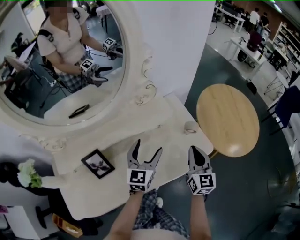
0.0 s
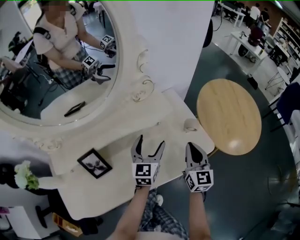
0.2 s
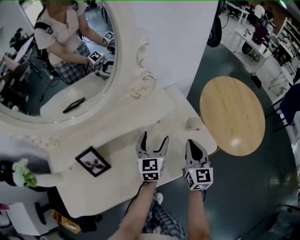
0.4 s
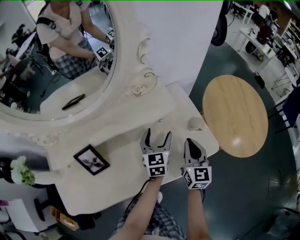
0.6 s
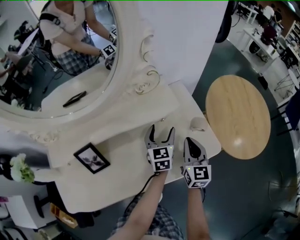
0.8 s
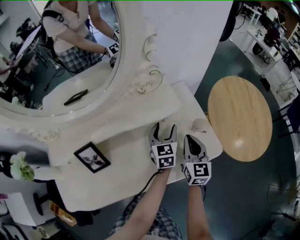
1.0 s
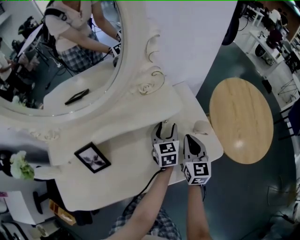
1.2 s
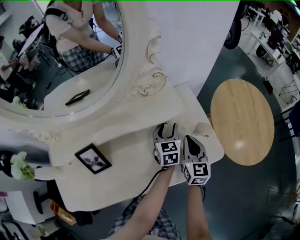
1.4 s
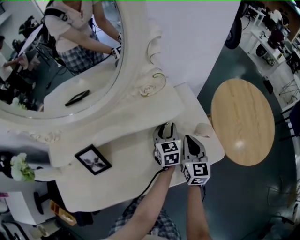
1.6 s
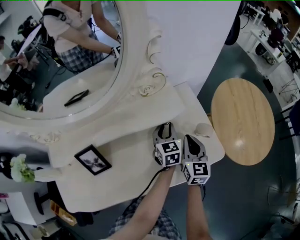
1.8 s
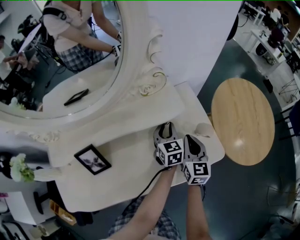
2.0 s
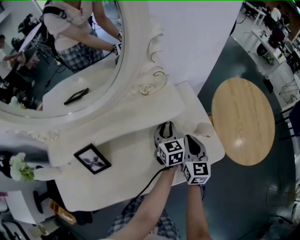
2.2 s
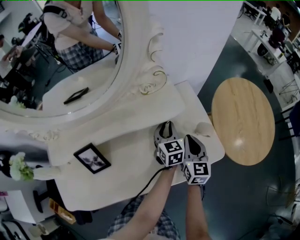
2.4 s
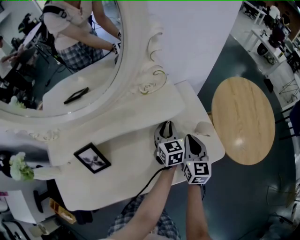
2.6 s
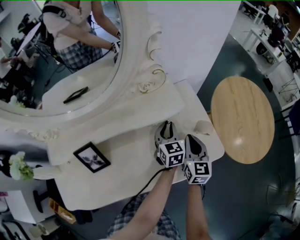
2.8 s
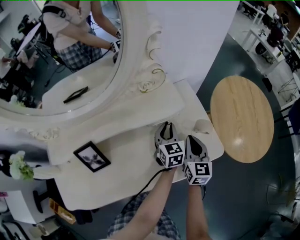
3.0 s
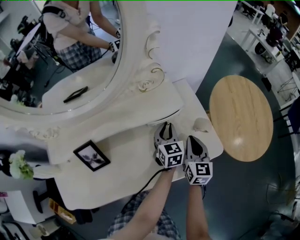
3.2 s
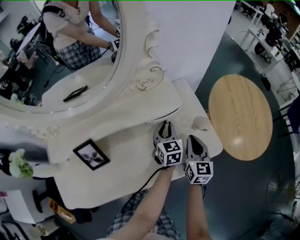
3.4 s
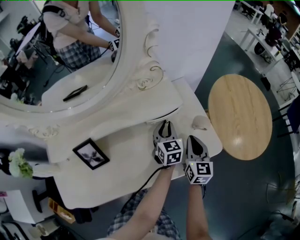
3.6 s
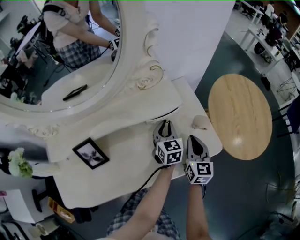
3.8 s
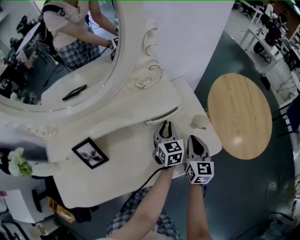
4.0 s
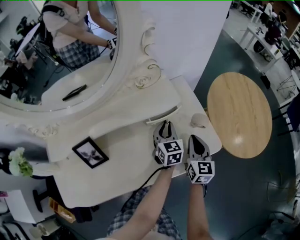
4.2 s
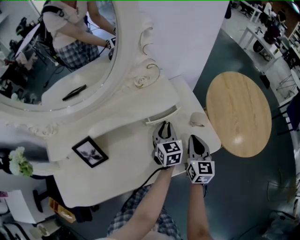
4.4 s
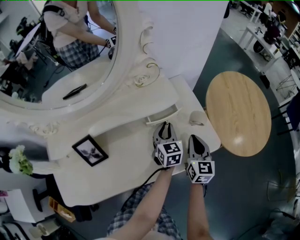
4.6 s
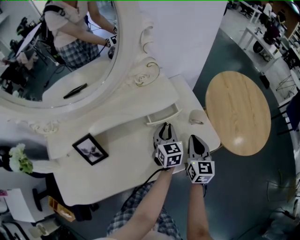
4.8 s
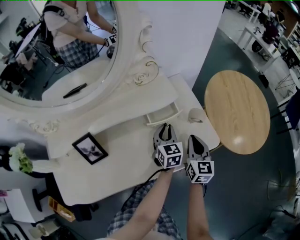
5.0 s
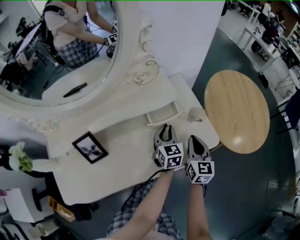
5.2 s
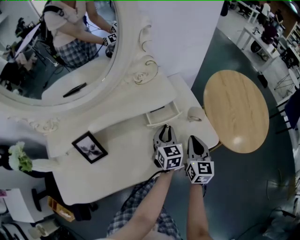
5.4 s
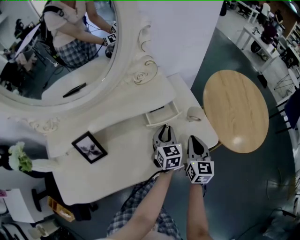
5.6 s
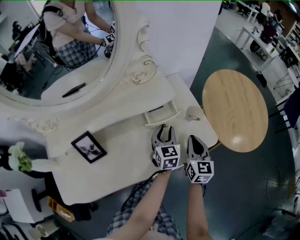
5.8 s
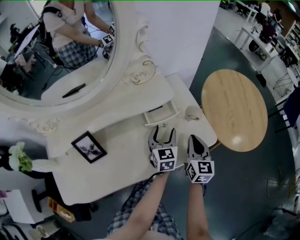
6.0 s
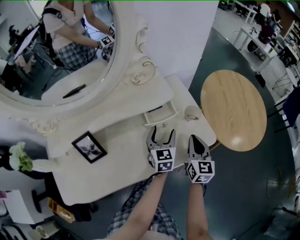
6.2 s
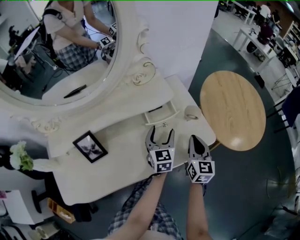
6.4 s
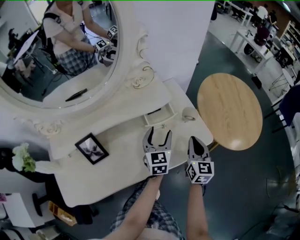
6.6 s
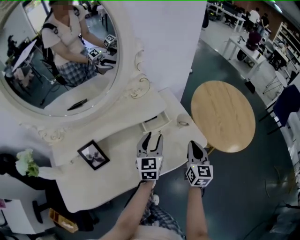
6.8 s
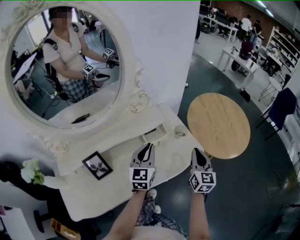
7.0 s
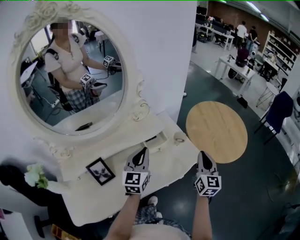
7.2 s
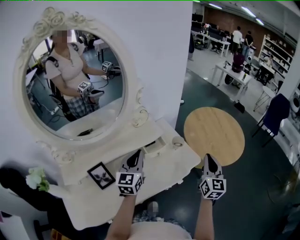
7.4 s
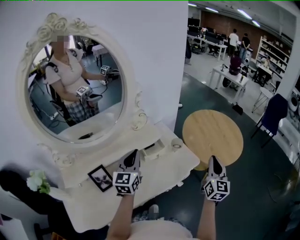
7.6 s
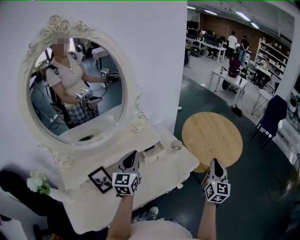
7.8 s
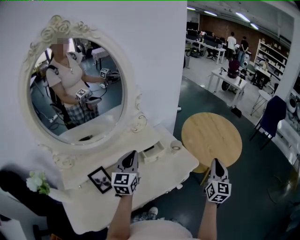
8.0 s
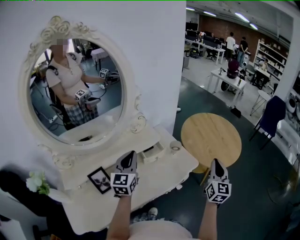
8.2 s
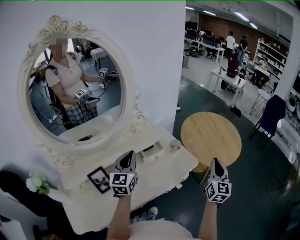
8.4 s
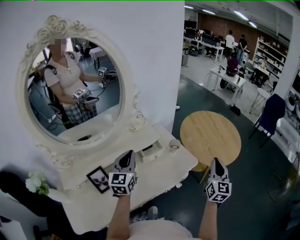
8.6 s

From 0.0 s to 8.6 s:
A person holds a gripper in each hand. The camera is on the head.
From 0.0 s to 1.4 s: The left gripper heads forward, downward and to the right, covering roughly 20 cm, changes its angle by some 20 degrees, and closes up. The right gripper heads downward and forward, covering some 15 cm.
From 1.4 s to 2.8 s: The grippers stay close to where they were, moving slightly.
From 2.8 s to 4.4 s: The right gripper moves about 5 cm.
From 4.4 s to 5.8 s: The grippers move only a little.
From 5.8 s to 7.2 s: The left gripper heads upward and to the left, covering some 25 cm, turns by about 30 degrees, and opens, then closes once more; the right gripper shifts about 15 cm upward.
From 7.2 s to 8.6 s: The right gripper moves to the right, roughly 10 cm. Meanwhile the left gripper changes place by roughly 5 cm.

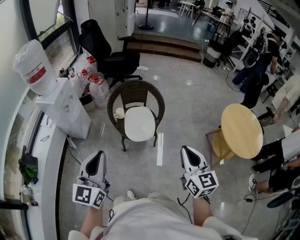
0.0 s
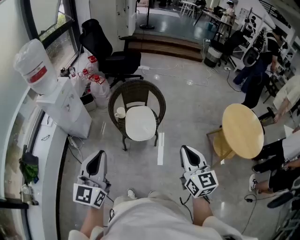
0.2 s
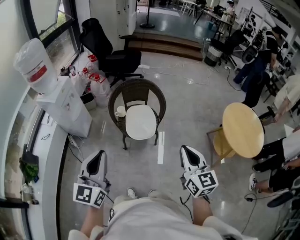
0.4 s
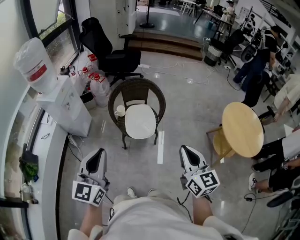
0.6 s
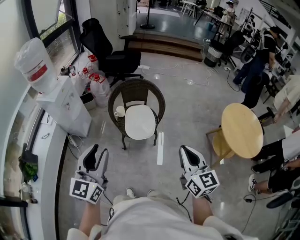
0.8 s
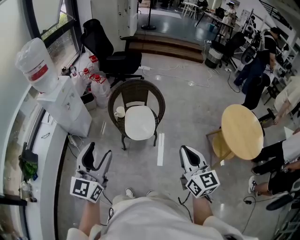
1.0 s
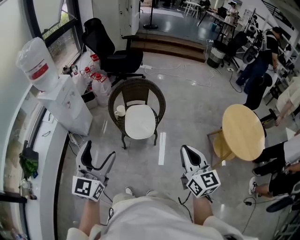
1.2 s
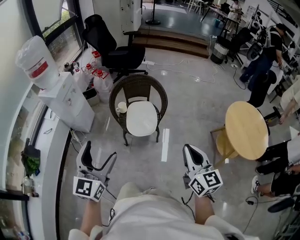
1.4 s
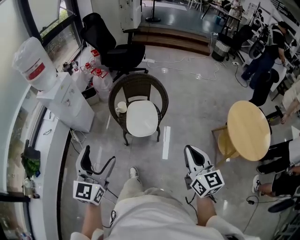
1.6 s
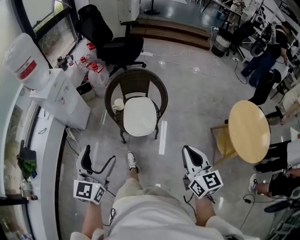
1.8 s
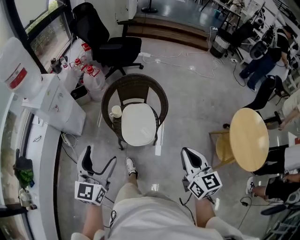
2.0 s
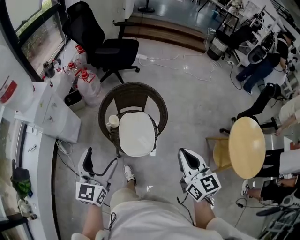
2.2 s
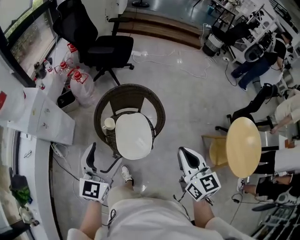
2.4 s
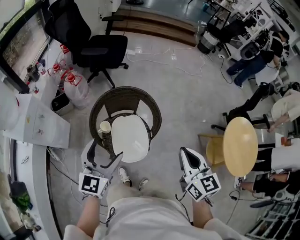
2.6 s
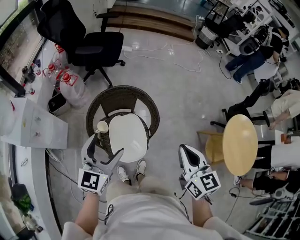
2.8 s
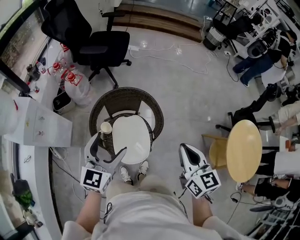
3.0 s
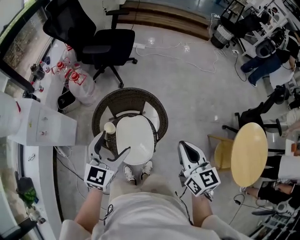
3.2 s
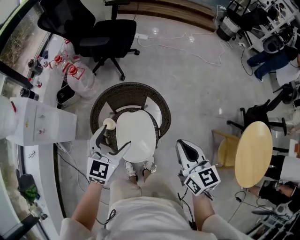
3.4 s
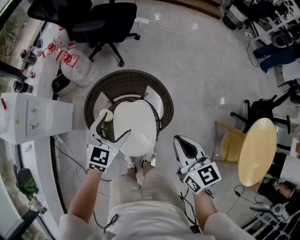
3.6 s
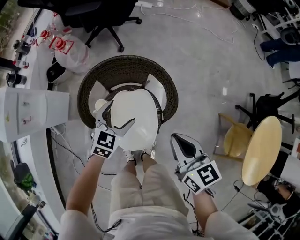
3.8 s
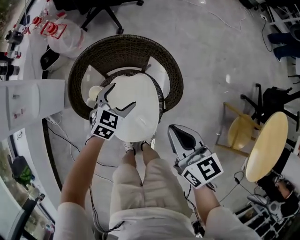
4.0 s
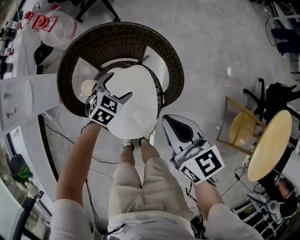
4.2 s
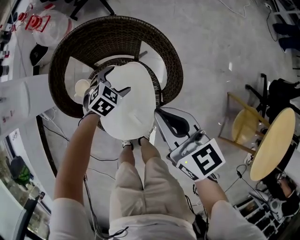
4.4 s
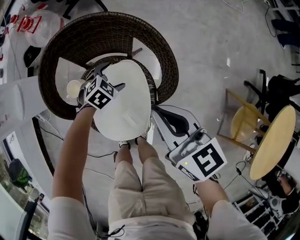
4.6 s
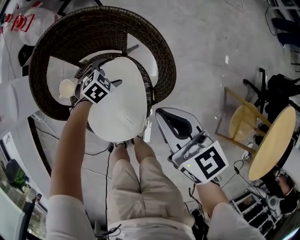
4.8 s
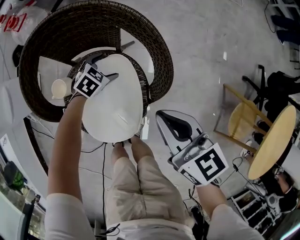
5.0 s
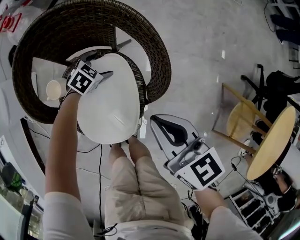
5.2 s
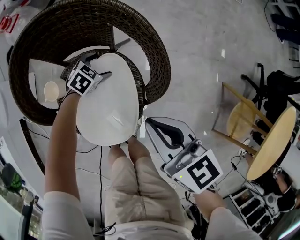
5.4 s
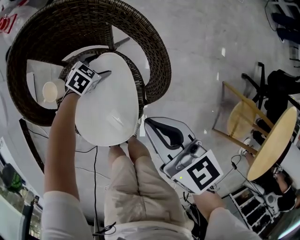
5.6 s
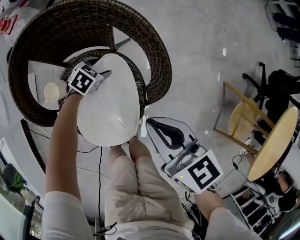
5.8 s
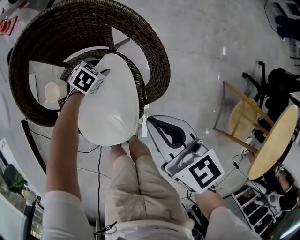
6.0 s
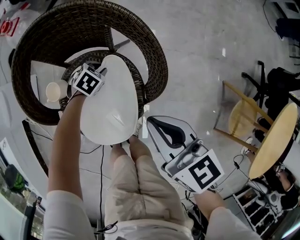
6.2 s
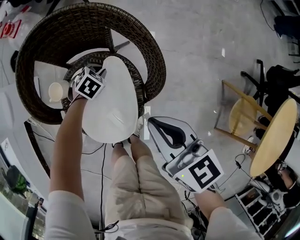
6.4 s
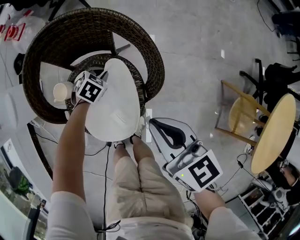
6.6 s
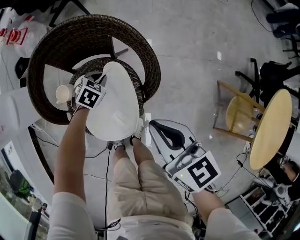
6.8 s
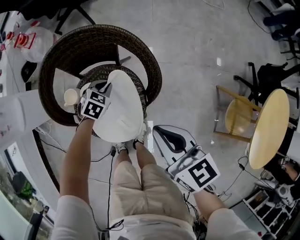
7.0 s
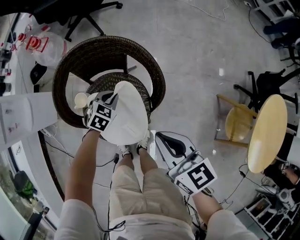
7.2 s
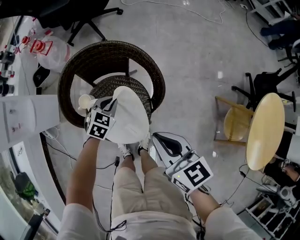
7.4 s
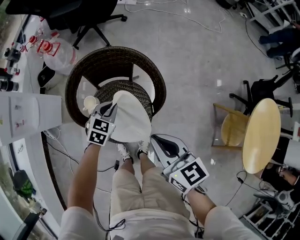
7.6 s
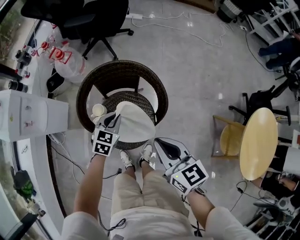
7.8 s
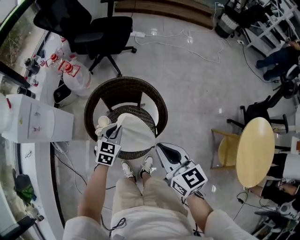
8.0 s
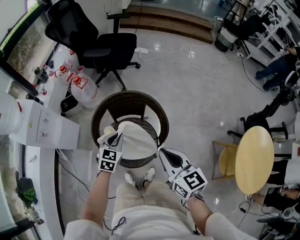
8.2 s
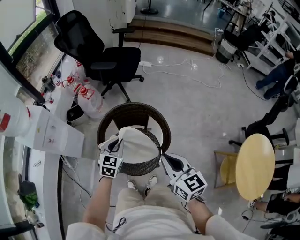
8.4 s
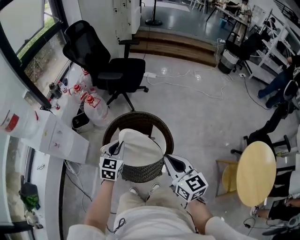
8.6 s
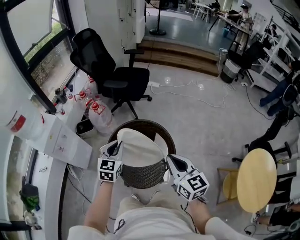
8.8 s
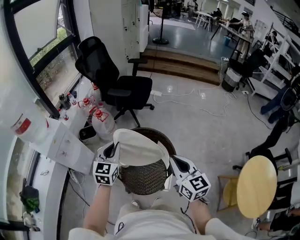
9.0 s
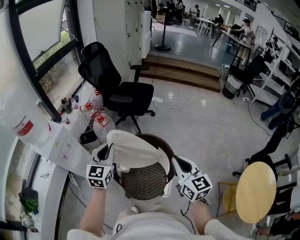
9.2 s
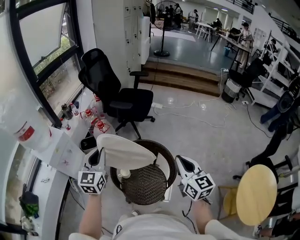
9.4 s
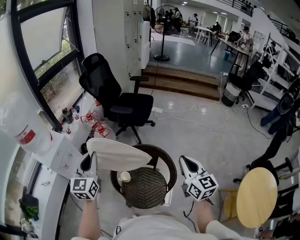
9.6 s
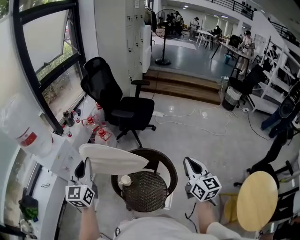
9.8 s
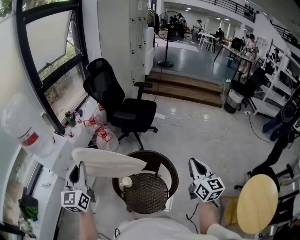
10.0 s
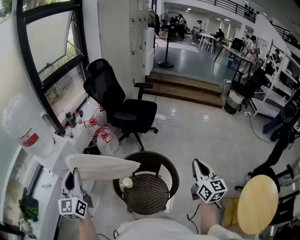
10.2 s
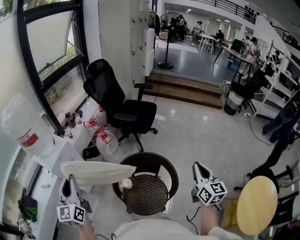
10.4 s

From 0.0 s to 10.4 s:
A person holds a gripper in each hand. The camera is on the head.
From 0.0 s to 1.4 s: The left gripper opens.
From 1.4 s to 3.0 s: Both grippers are carried forward, roughly 40 cm.
From 3.0 s to 4.4 s: The left gripper moves downward, some 50 cm, and angles its fingers downward, by some 50 degrees. Meanwhile the right gripper goes approximately 30 cm downward and forward, and turns by about 30 degrees.
From 4.4 s to 6.0 s: The right gripper goes some 10 cm downward and to the right. Meanwhile the left gripper heads downward, covering roughly 15 cm, and closes its fingers.
From 6.0 s to 7.4 s: The left gripper shifts roughly 25 cm upward, rotates approximately 20 degrees, and closes up. Meanwhile the right gripper heads upward and backward, covering some 15 cm.
From 7.4 s to 9.0 s: The left gripper is displaced upward by approximately 40 cm, and tips its fingers upward by approximately 40 degrees; the right gripper goes about 25 cm upward, and changes its angle by about 20 degrees.
From 9.0 s to 10.4 s: The right gripper goes about 10 cm to the right. The left gripper is displaced to the left, upward and backward by about 25 cm, and swivels about 40 degrees.

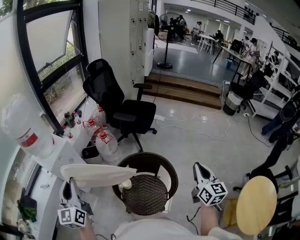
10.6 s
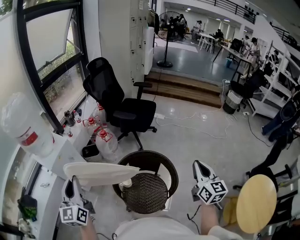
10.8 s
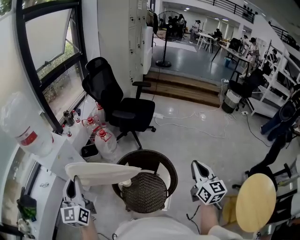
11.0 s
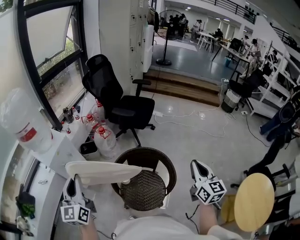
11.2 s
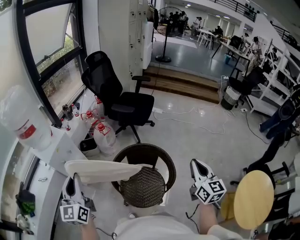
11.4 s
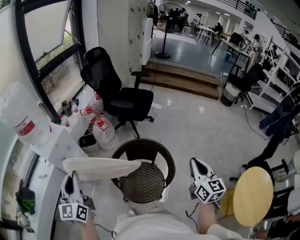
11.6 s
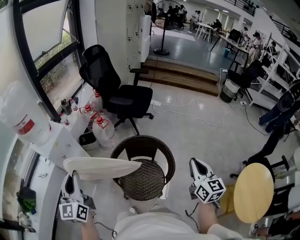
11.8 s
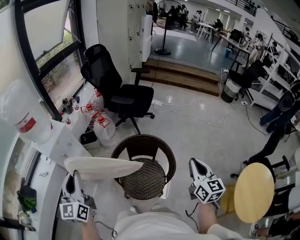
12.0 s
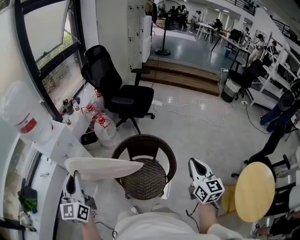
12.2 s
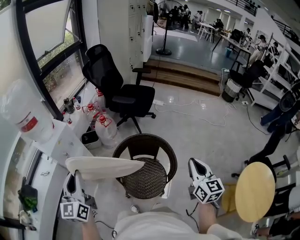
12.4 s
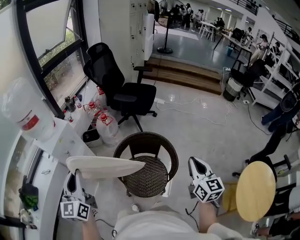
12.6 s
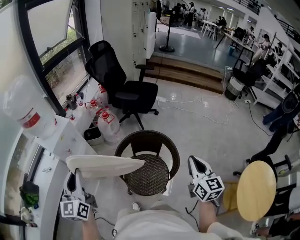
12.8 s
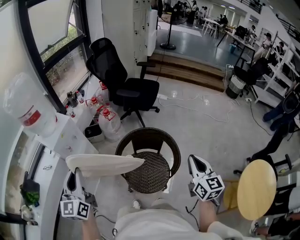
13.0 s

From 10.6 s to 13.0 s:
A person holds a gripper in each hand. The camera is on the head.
From 10.6 s to 11.8 s: The left gripper shifts by roughly 5 cm; the right gripper shifts some 5 cm backward.
From 11.8 s to 13.0 s: The grippers stay close to where they were, moving slightly.

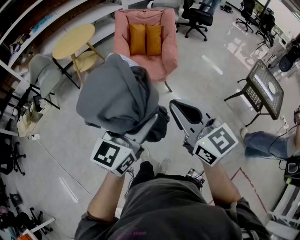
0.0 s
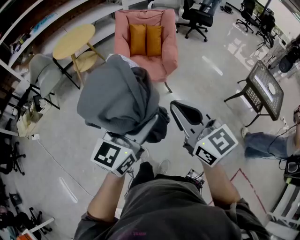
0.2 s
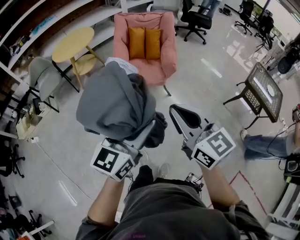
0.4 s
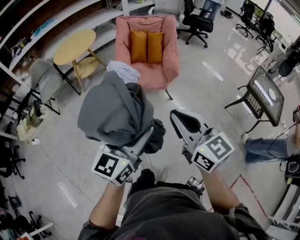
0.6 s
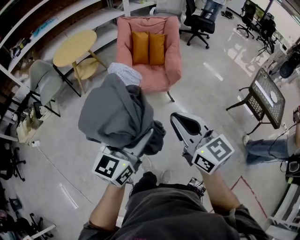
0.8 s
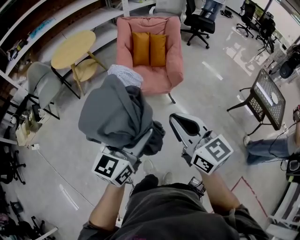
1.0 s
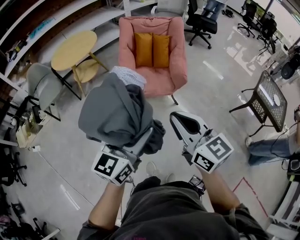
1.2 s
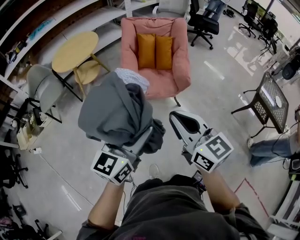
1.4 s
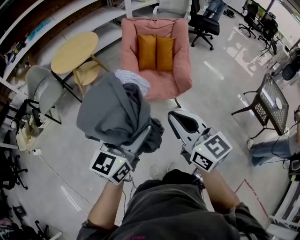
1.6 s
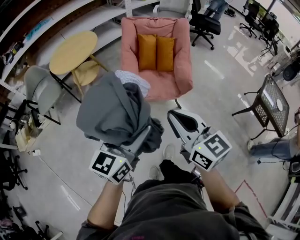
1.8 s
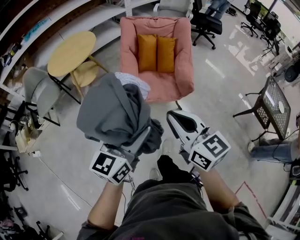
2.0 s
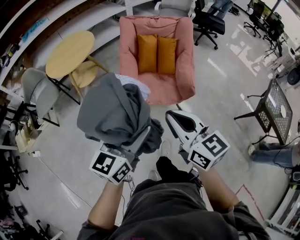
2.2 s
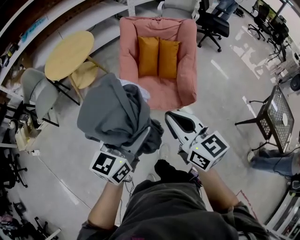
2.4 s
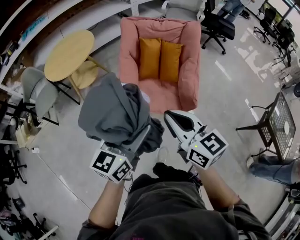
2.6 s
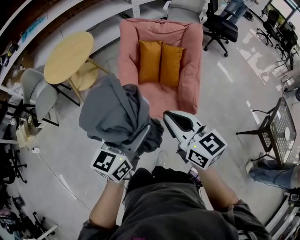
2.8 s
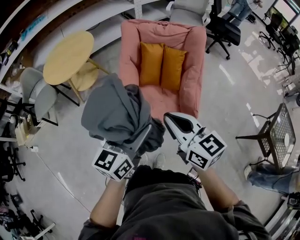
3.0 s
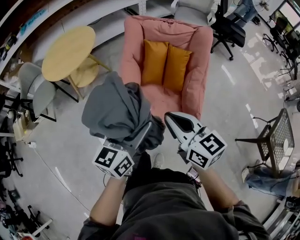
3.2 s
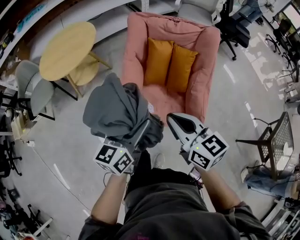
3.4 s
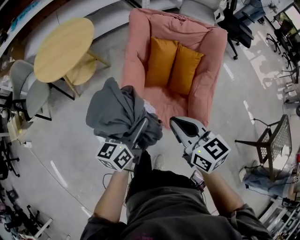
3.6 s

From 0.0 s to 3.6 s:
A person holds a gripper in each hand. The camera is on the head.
From 0.0 s to 1.8 s: The two grippers go some 25 cm forward and to the left.
From 1.8 s to 3.6 s: The left gripper travels forward and downward by some 40 cm, and swivels about 30 degrees. Meanwhile the right gripper shifts some 40 cm forward.
